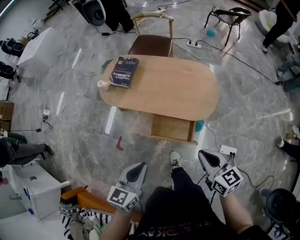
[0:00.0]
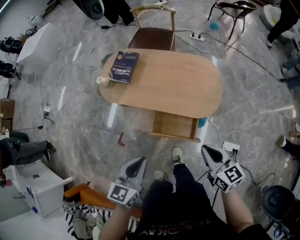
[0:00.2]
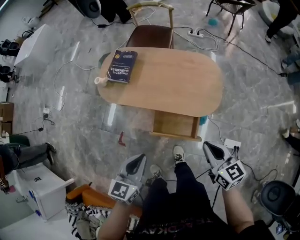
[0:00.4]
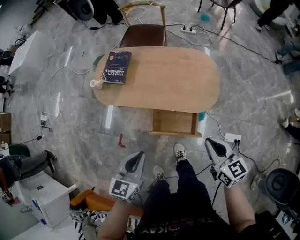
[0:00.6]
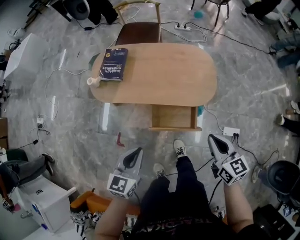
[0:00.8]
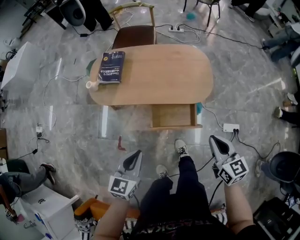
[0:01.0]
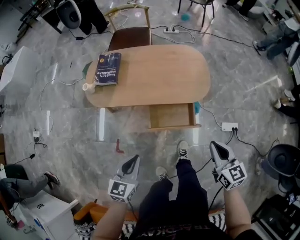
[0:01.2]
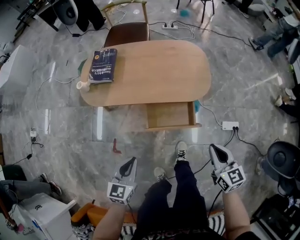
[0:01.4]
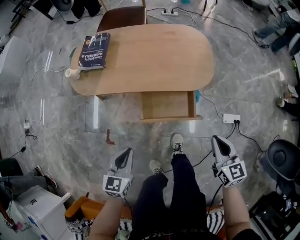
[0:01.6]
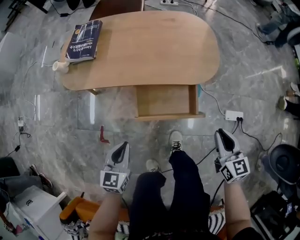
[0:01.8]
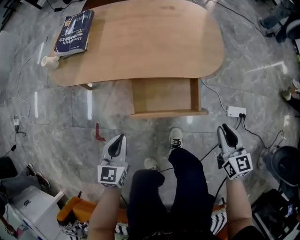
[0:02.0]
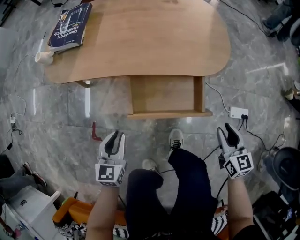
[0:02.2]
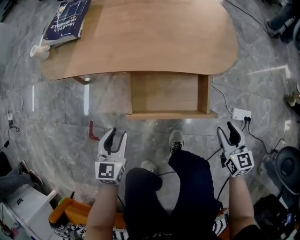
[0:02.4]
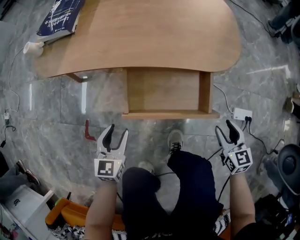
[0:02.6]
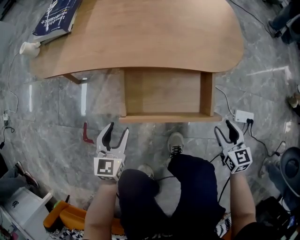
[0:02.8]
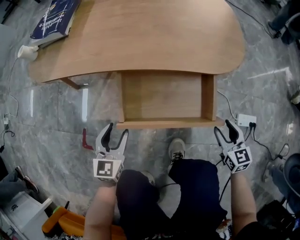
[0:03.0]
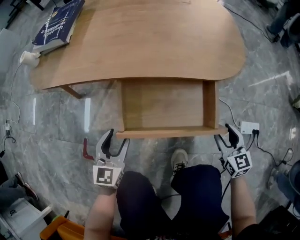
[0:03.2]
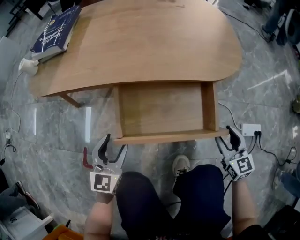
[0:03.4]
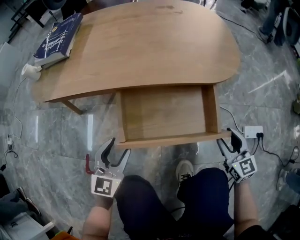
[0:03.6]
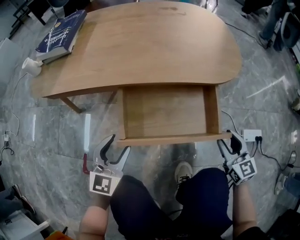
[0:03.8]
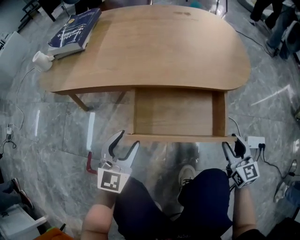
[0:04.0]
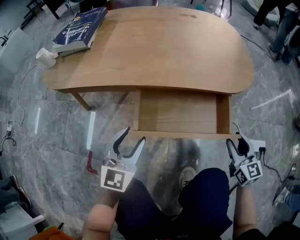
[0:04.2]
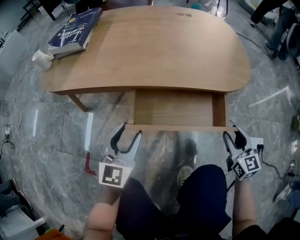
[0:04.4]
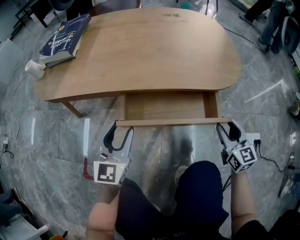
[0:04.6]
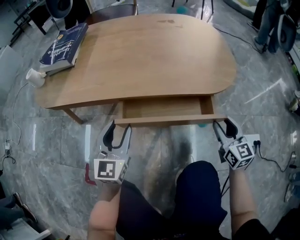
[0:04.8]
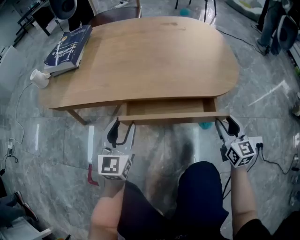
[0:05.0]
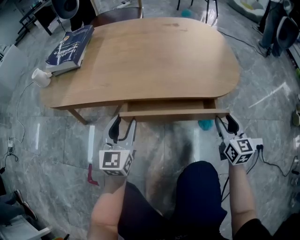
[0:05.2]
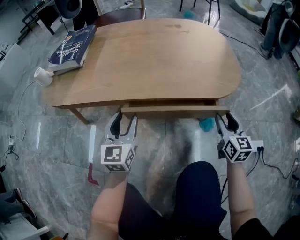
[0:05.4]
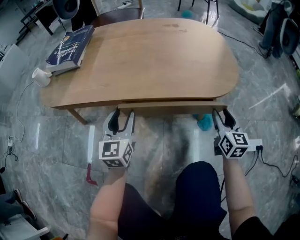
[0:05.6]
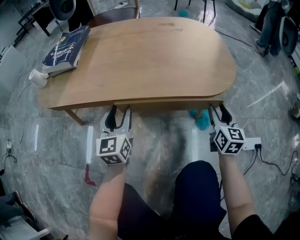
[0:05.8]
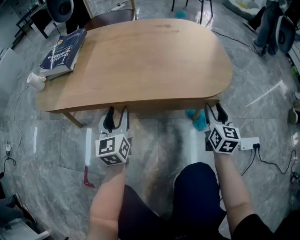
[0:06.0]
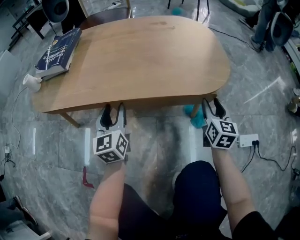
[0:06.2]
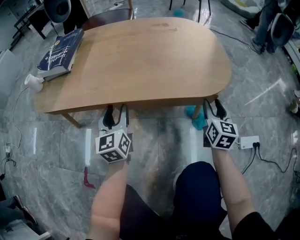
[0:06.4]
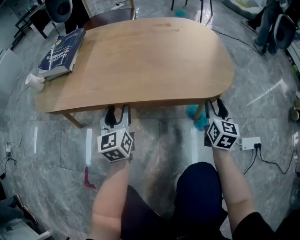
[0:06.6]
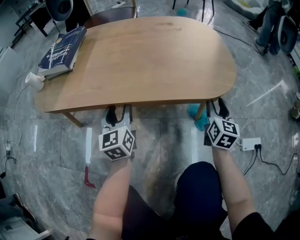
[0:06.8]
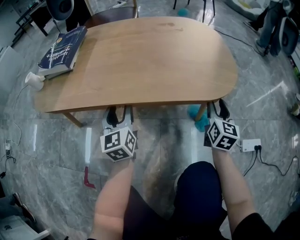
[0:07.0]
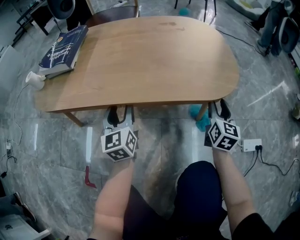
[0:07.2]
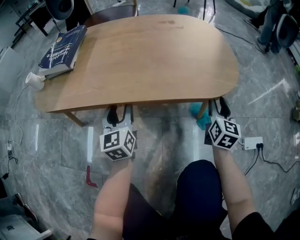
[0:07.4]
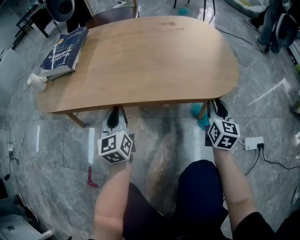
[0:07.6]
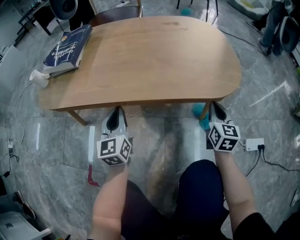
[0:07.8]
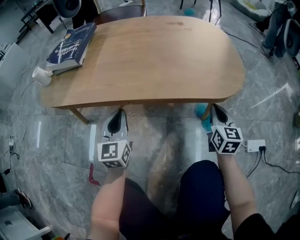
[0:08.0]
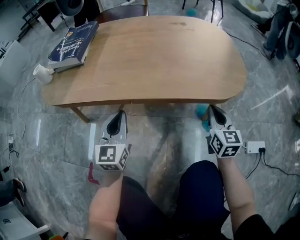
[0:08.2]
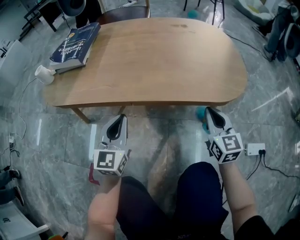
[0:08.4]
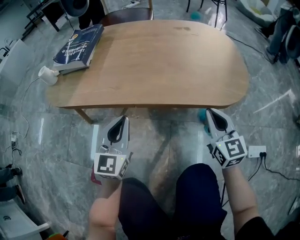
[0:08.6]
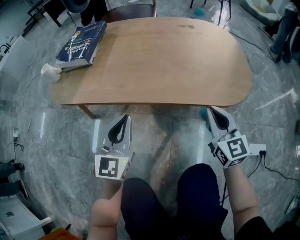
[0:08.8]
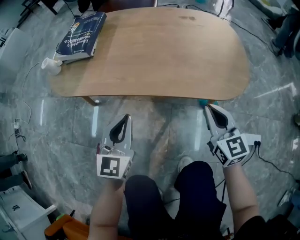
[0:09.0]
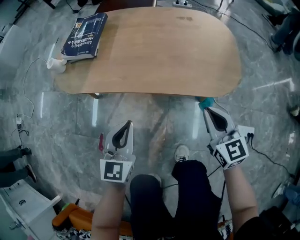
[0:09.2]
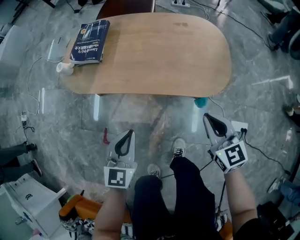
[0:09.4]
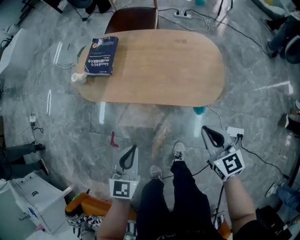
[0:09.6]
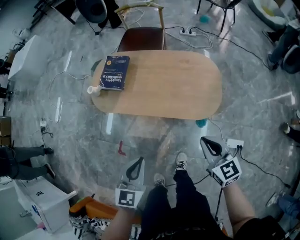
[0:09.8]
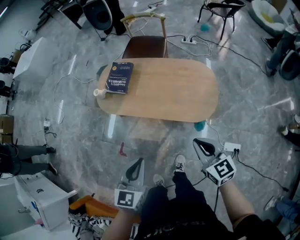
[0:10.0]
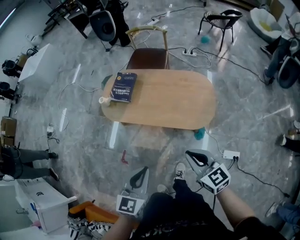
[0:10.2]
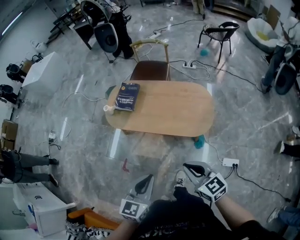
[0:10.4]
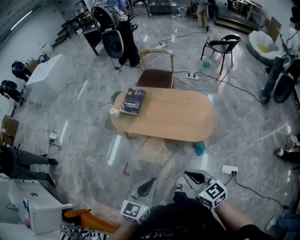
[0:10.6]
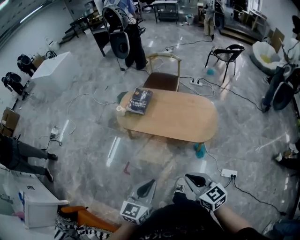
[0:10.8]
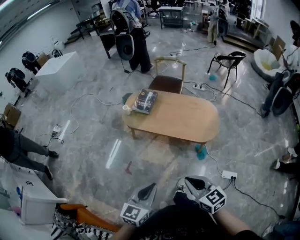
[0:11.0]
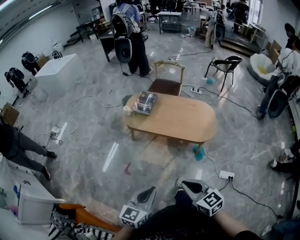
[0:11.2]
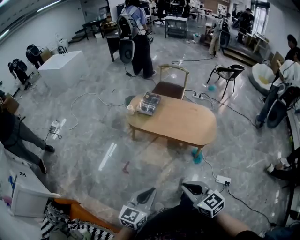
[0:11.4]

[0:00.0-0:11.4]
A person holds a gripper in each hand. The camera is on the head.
0:00.0 to 0:01.4: The right gripper heads downward and backward, covering about 15 cm, and turns by roughly 20 degrees; the left gripper is displaced downward and to the left by approximately 20 cm.
0:01.4 to 0:02.8: The grippers both shift downward by approximately 40 cm. The left gripper opens. Meanwhile the right gripper opens up.
0:02.8 to 0:04.2: The left gripper changes place by roughly 5 cm, and changes its angle by some 30 degrees.
0:04.2 to 0:05.6: The grippers both shift forward by about 10 cm.
0:05.6 to 0:07.2: There are only small adjustments of the grippers.
0:07.2 to 0:08.6: The right gripper travels to the left and upward by approximately 15 cm, rotates approximately 30 degrees, and closes up. The left gripper shifts some 10 cm backward and upward, turns by roughly 20 degrees, and closes up.
0:08.6 to 0:10.0: Both grippers travel together upward, about 50 cm. The left gripper rotates roughly 20 degrees; the right gripper changes its angle by some 30 degrees.
0:10.0 to 0:11.4: The left gripper heads backward and to the left, covering approximately 35 cm. The right gripper shifts some 40 cm backward, to the left and upward.

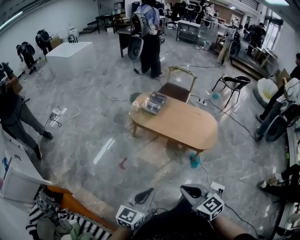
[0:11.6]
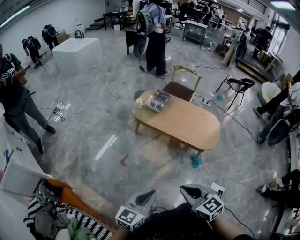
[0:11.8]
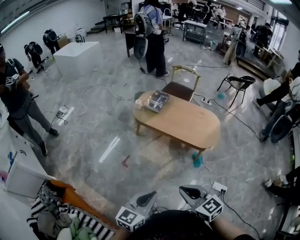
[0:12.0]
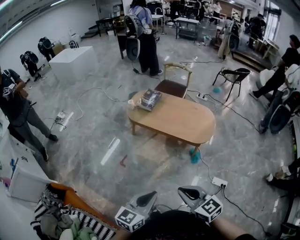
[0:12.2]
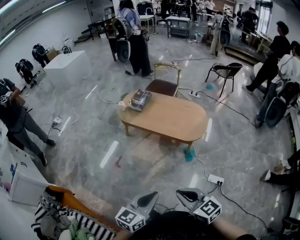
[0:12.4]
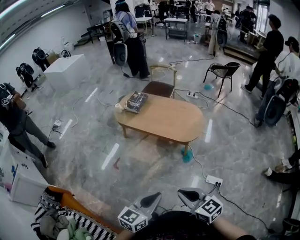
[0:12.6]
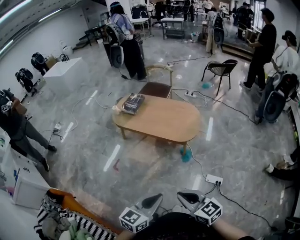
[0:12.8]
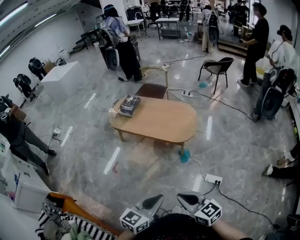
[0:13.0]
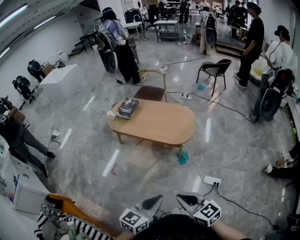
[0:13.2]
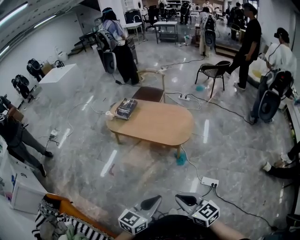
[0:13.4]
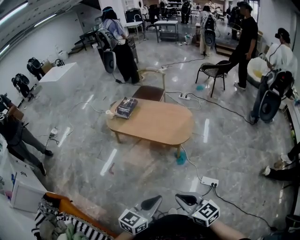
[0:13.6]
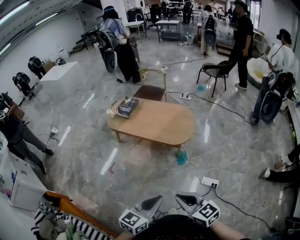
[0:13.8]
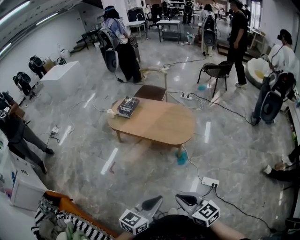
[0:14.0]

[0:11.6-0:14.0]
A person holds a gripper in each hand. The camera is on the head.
0:11.6 to 0:12.8: The right gripper heads to the right and backward, covering roughly 30 cm; the left gripper travels to the right by roughly 30 cm.
0:12.8 to 0:14.0: The grippers stay close to where they were, moving slightly.

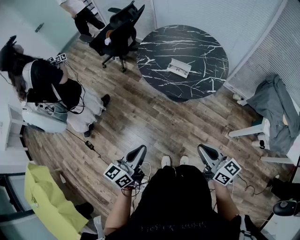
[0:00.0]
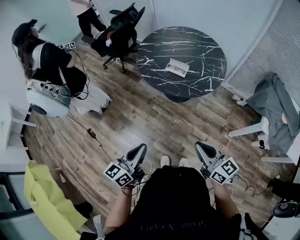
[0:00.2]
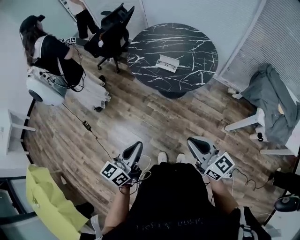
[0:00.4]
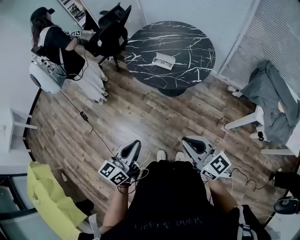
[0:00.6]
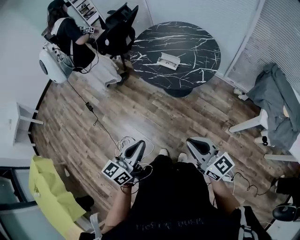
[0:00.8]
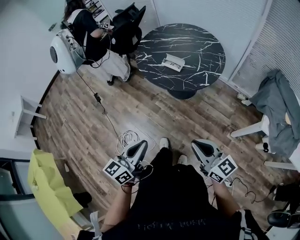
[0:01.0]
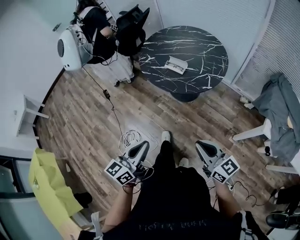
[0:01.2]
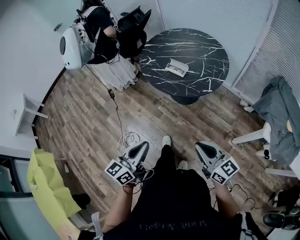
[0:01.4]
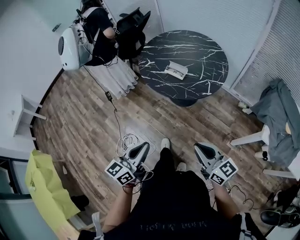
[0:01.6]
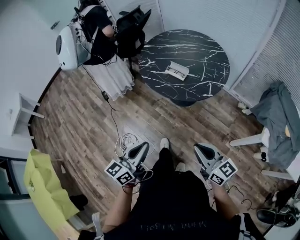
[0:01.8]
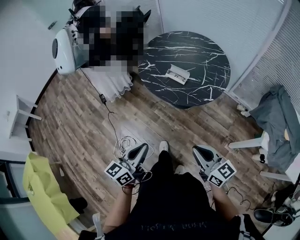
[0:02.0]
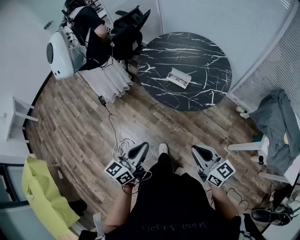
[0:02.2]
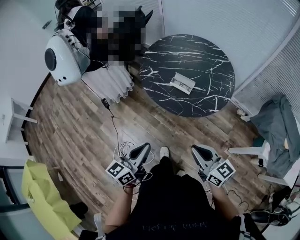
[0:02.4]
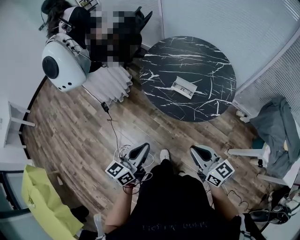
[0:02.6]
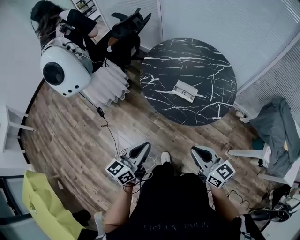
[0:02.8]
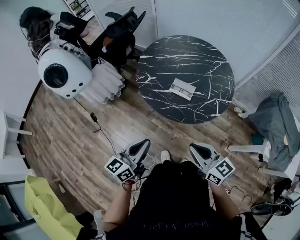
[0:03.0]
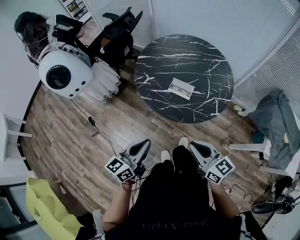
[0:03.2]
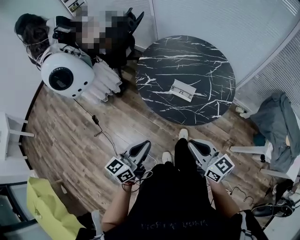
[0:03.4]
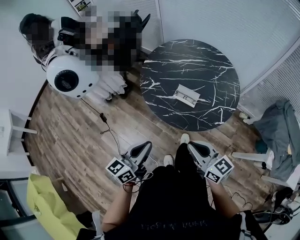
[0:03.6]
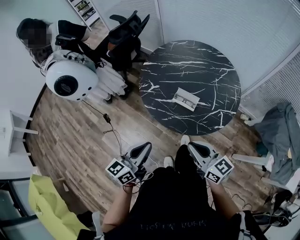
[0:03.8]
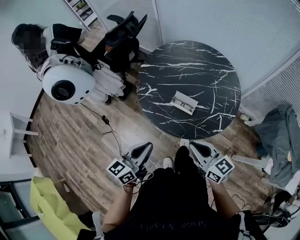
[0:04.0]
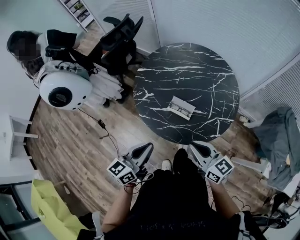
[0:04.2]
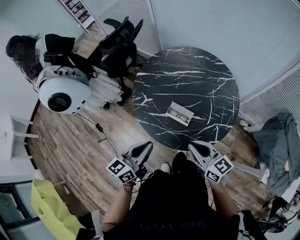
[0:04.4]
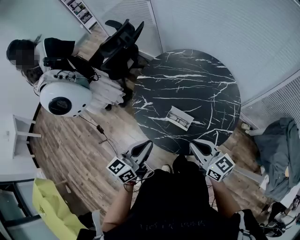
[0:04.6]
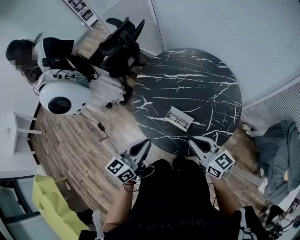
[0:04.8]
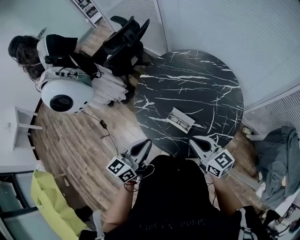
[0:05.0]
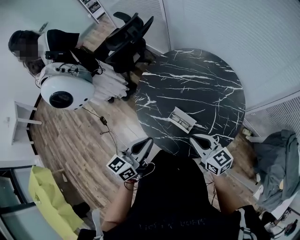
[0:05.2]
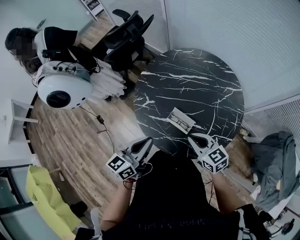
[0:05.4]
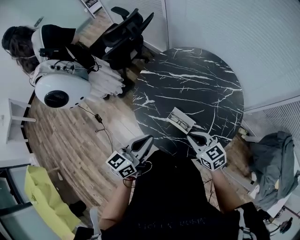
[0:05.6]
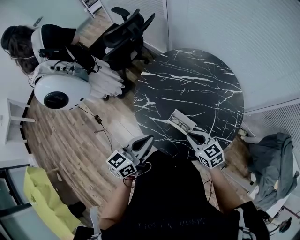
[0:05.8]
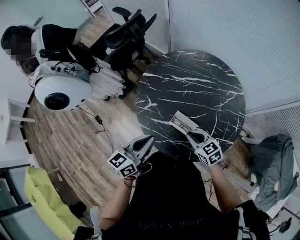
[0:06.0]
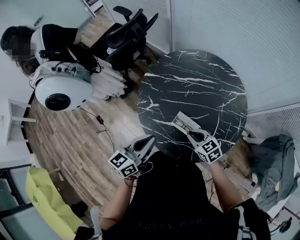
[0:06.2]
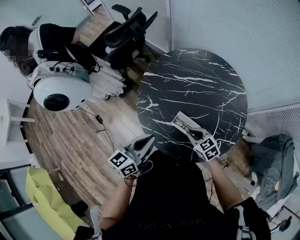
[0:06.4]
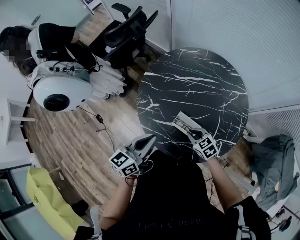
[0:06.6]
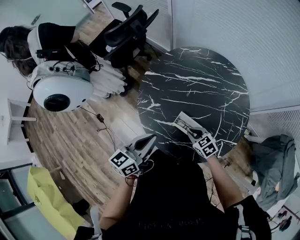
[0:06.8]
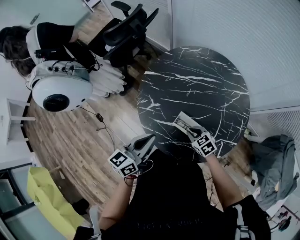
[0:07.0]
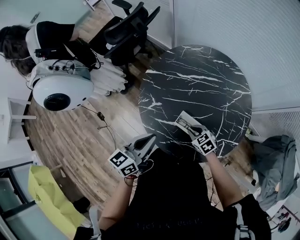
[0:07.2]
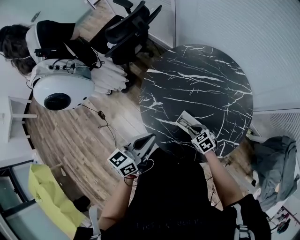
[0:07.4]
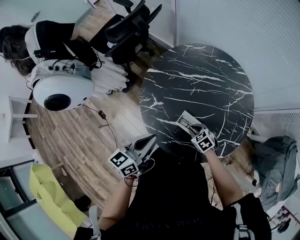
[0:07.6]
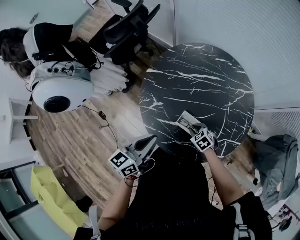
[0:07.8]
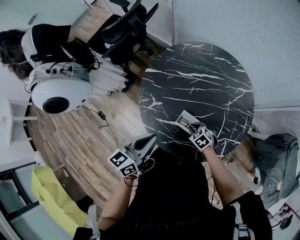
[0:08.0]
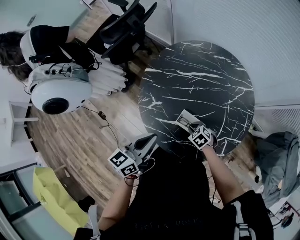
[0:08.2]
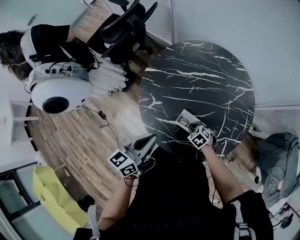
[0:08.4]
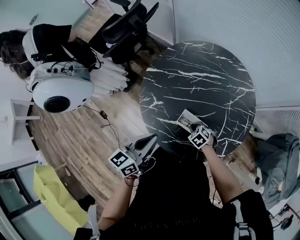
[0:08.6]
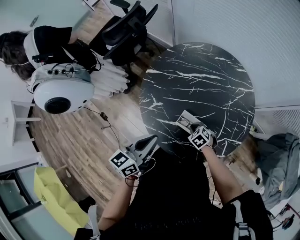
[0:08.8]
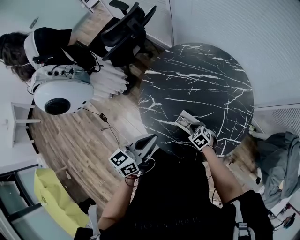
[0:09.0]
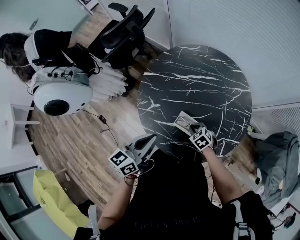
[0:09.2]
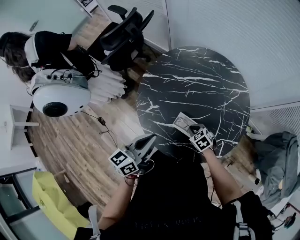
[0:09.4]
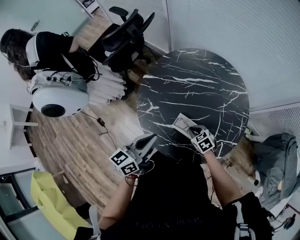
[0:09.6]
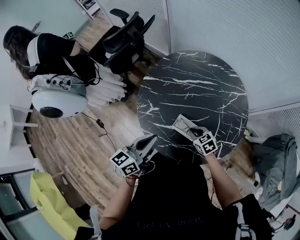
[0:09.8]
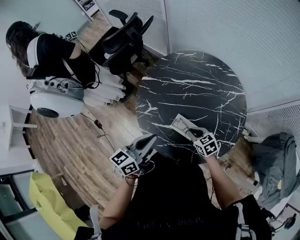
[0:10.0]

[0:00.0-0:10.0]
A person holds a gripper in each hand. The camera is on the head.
0:00.0 to 0:01.4: The right gripper travels to the right by some 10 cm. The left gripper shifts about 10 cm to the right and backward.
0:01.4 to 0:02.8: The right gripper goes some 25 cm forward and to the left, while the left gripper shifts about 25 cm forward.
0:02.8 to 0:04.2: The right gripper moves forward, some 15 cm; the left gripper is displaced forward and to the right by roughly 15 cm.
0:04.2 to 0:05.8: The left gripper travels forward by about 10 cm. Meanwhile the right gripper shifts approximately 20 cm forward and downward, and rotates about 30 degrees.
0:05.8 to 0:07.2: The right gripper is displaced downward by approximately 15 cm.
0:07.2 to 0:08.6: The right gripper shifts roughly 5 cm downward.
0:08.6 to 0:10.0: The right gripper shifts approximately 10 cm upward, and changes its angle by about 30 degrees.
